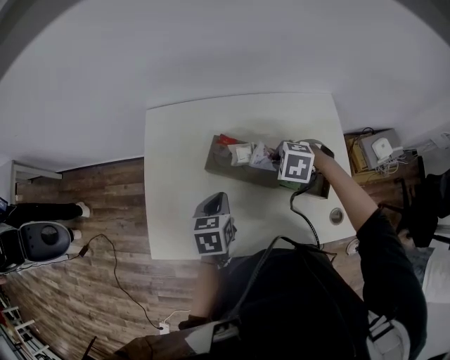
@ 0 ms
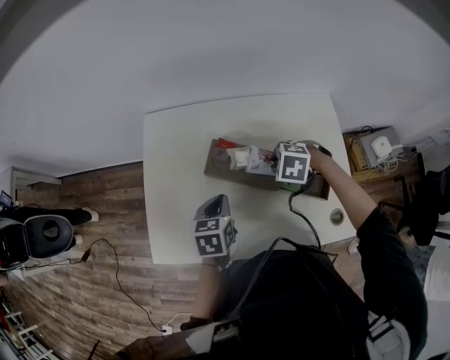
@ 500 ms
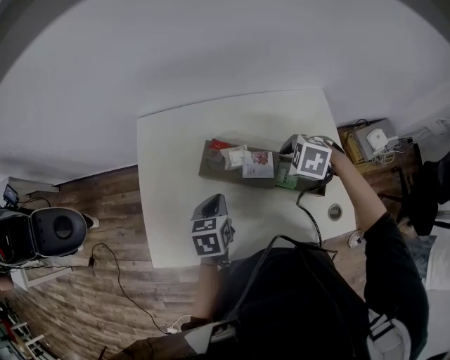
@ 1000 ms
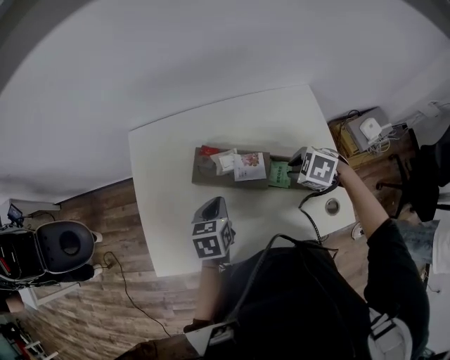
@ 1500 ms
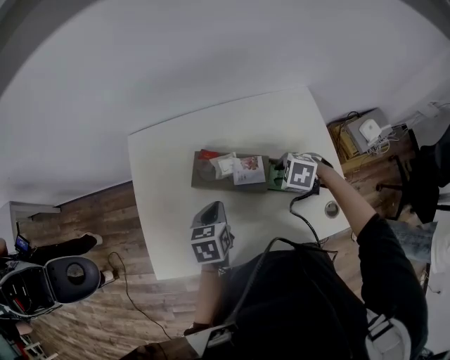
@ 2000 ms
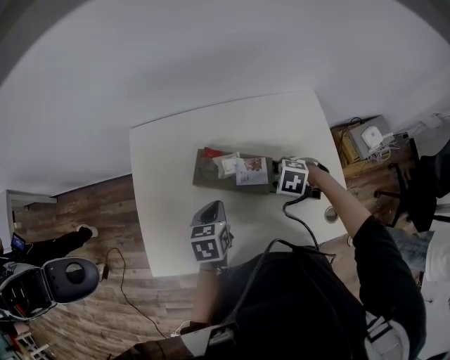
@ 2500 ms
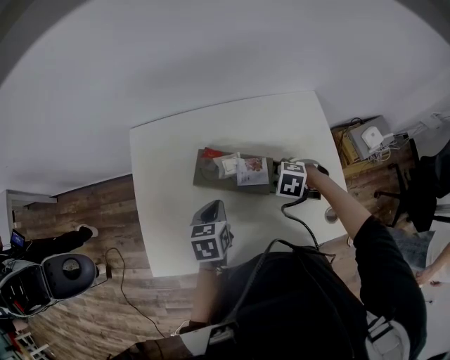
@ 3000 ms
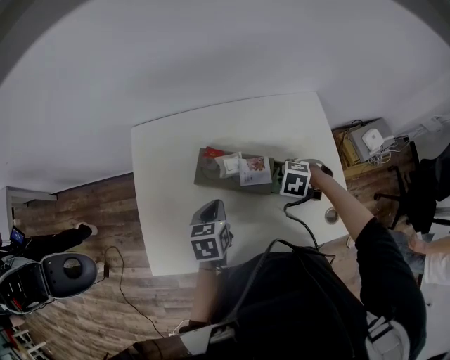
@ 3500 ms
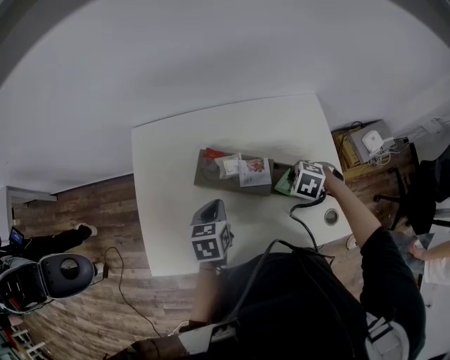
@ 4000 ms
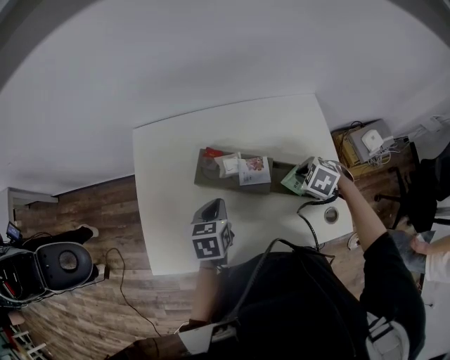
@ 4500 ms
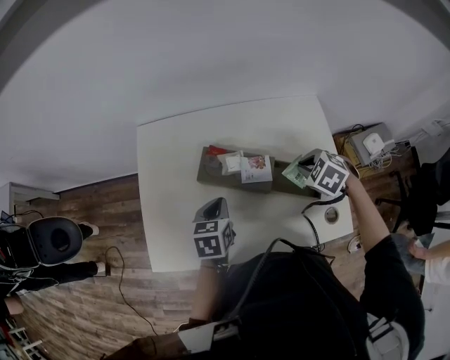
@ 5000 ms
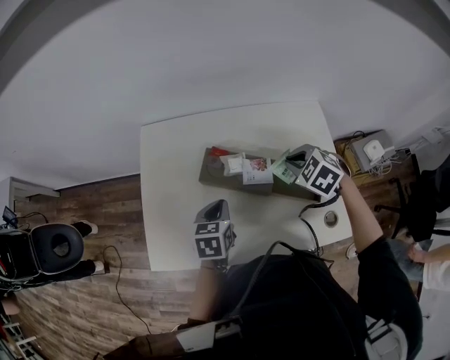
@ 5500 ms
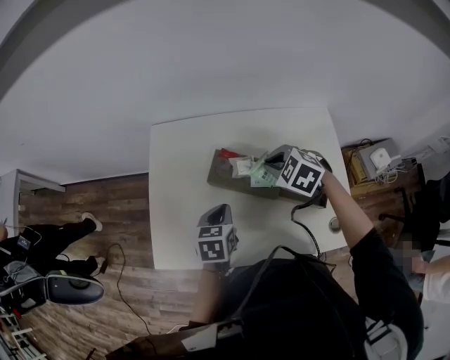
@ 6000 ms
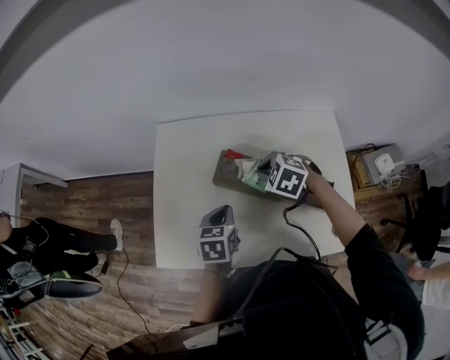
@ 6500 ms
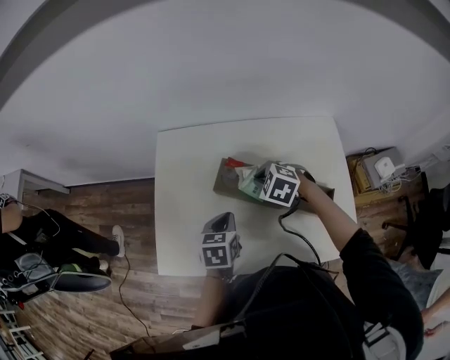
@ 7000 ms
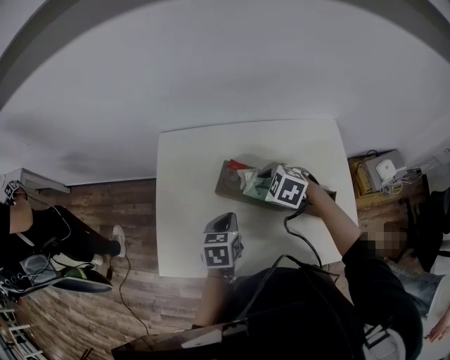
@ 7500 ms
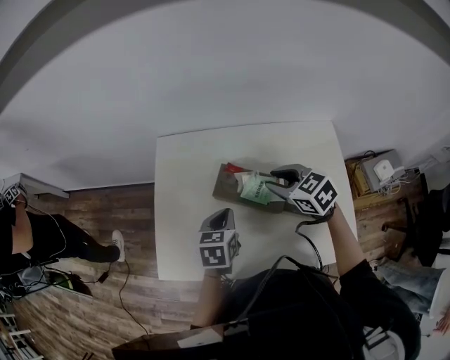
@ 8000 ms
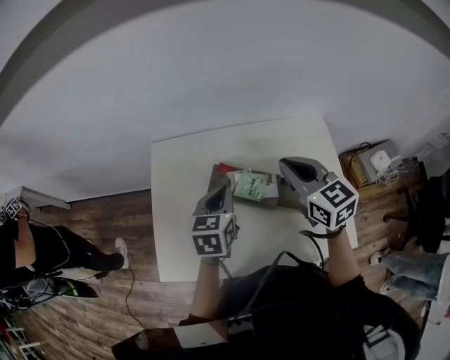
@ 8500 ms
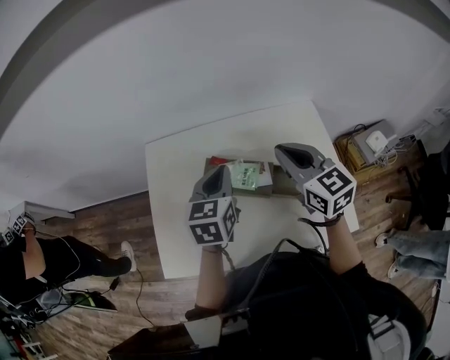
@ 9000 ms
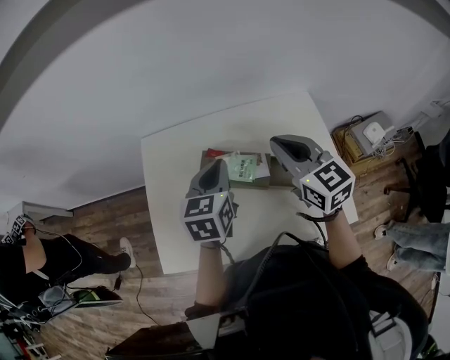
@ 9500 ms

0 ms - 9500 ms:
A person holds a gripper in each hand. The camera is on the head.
0 ms - 2000 ms: The right gripper shifts by approximately 5 cm, and opens.
2000 ms - 4000 ms: The right gripper closes up.
4000 ms - 5500 ms: The right gripper travels upward by roughly 10 cm, and swivels roughly 20 degrees.
5500 ms - 7500 ms: The right gripper goes approximately 15 cm to the left, and opens up.
7500 ms - 9500 ms: Both grippers move upward and to the right, about 20 cm. The left gripper turns by approximately 20 degrees. The right gripper points its fingers some 50 degrees further upward, and closes up.

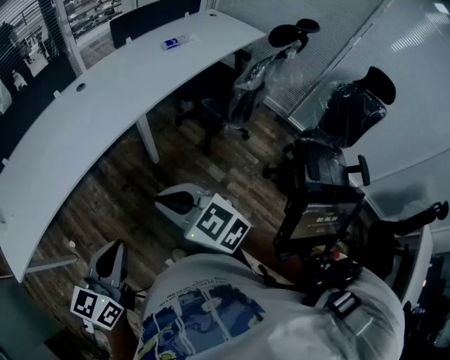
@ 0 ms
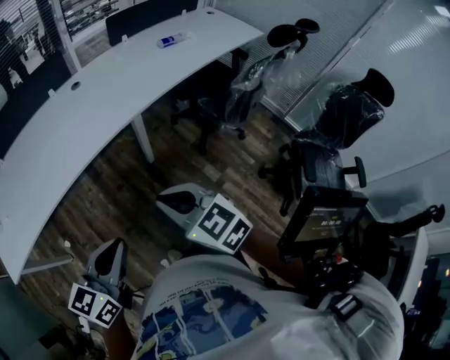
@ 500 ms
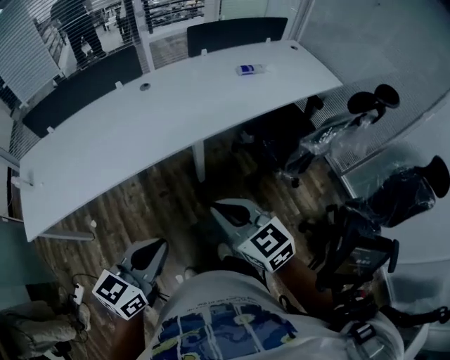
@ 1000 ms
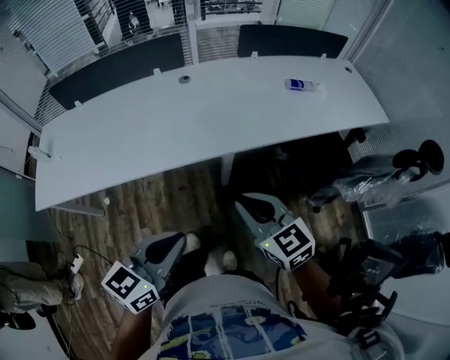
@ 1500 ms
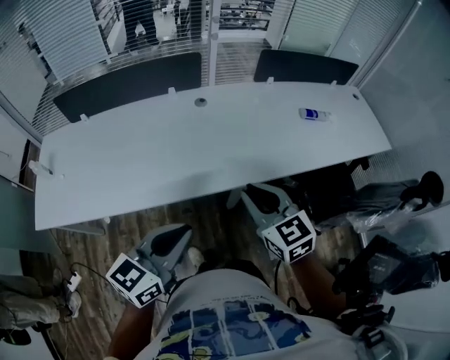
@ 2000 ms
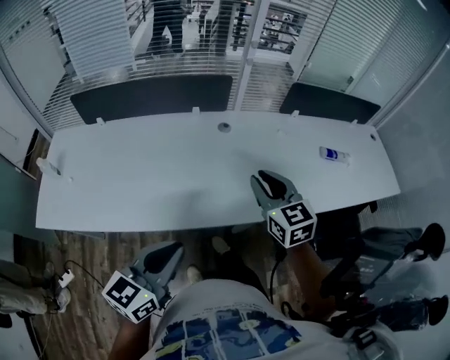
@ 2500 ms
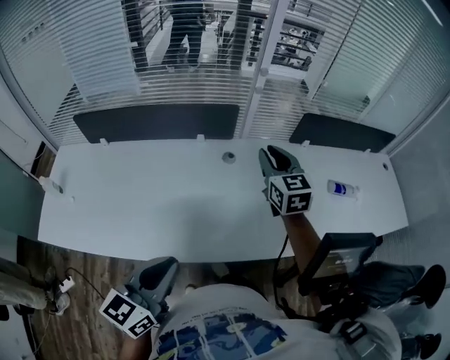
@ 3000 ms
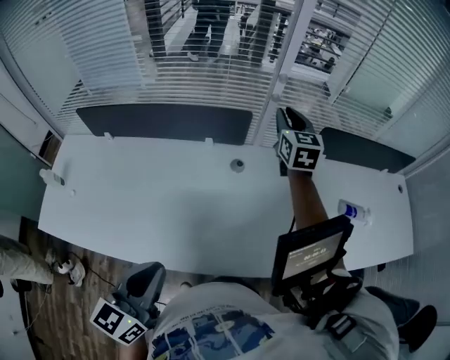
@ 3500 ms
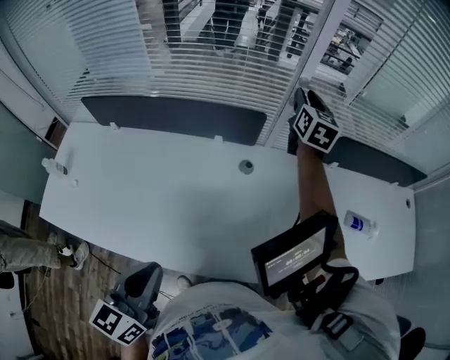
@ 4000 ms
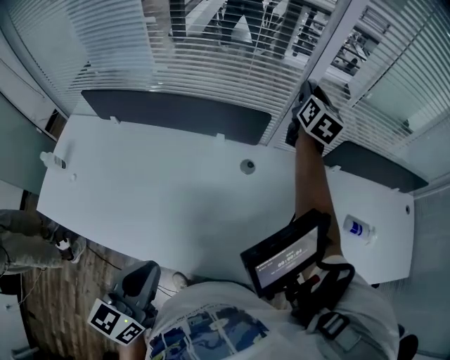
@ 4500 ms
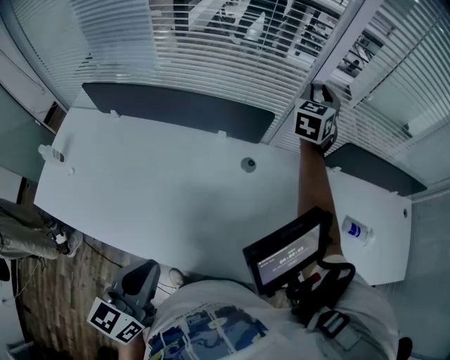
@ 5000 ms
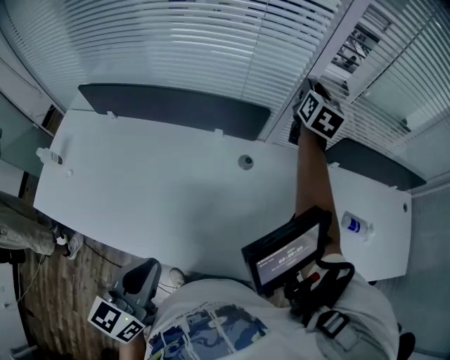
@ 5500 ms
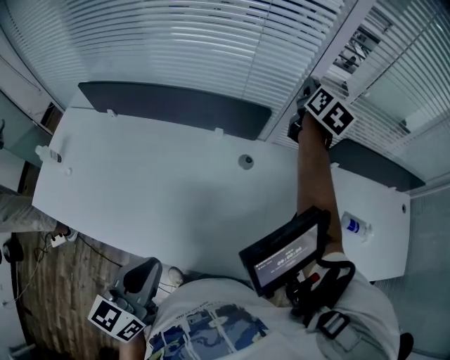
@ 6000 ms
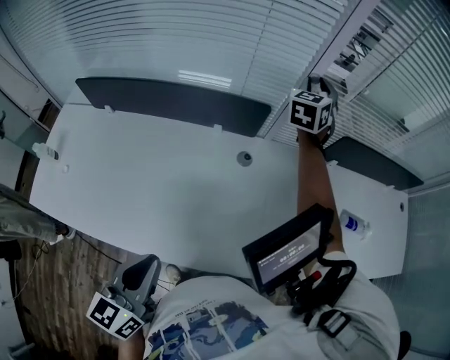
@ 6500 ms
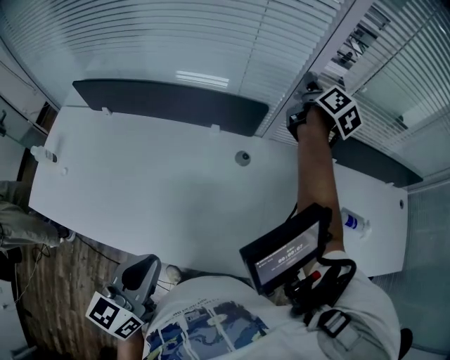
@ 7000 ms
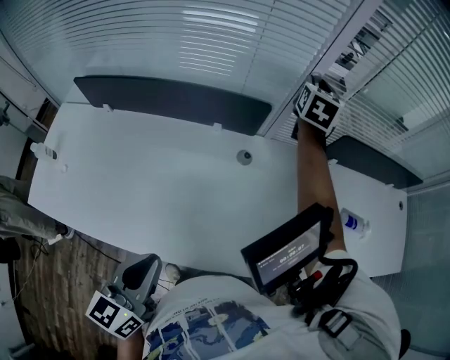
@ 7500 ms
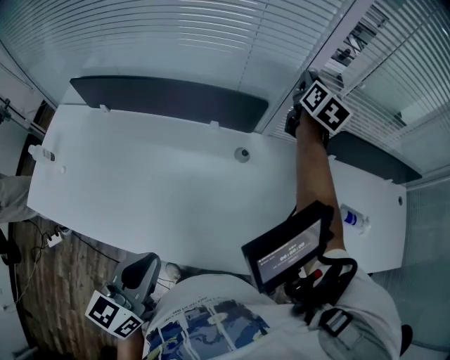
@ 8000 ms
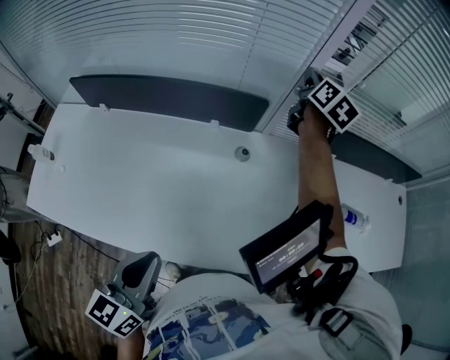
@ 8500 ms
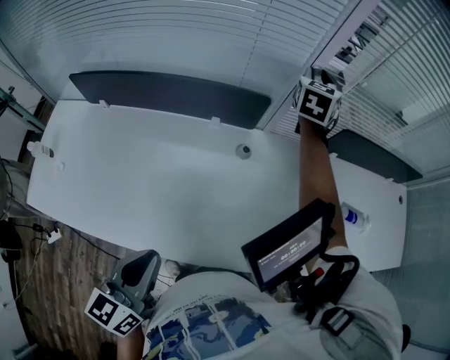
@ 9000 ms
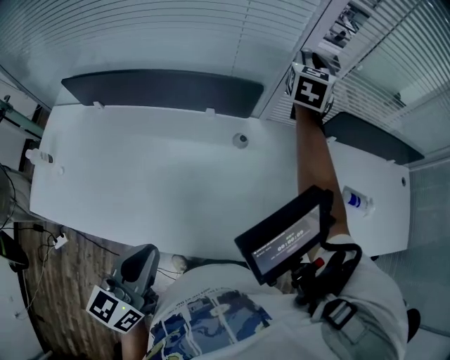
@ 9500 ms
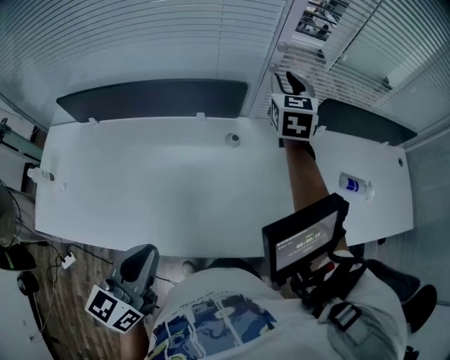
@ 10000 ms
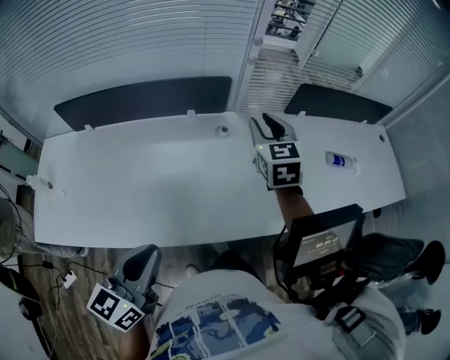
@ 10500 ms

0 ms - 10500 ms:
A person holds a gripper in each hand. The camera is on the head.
0 ms - 2000 ms: The grippers both shift forward by roughly 30 cm.
2000 ms - 4000 ms: The left gripper travels forward and to the left by some 25 cm, and swivels about 40 degrees. The right gripper heads forward, covering about 70 cm, and turns by some 20 degrees.
4000 ms - 6500 ms: The right gripper rotates some 30 degrees.
6500 ms - 8500 ms: The right gripper rotates around the line of its fingers by approximately 50 degrees, clockwise from behind.
8500 ms - 10500 ms: The right gripper goes approximately 30 cm backward, and turns by about 40 degrees, while the left gripper travels backward by roughly 10 cm.

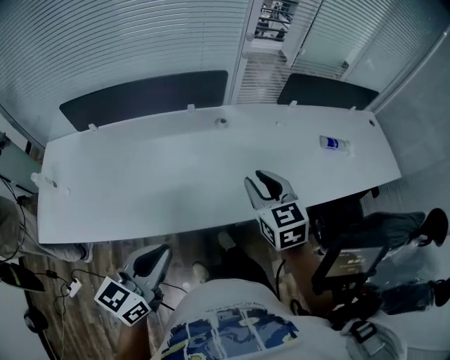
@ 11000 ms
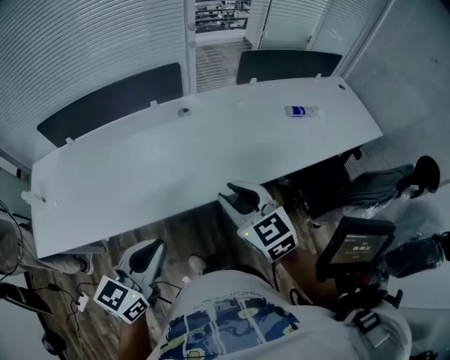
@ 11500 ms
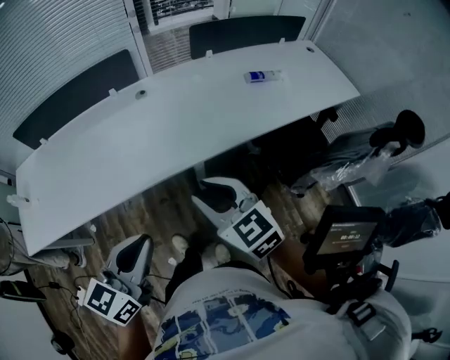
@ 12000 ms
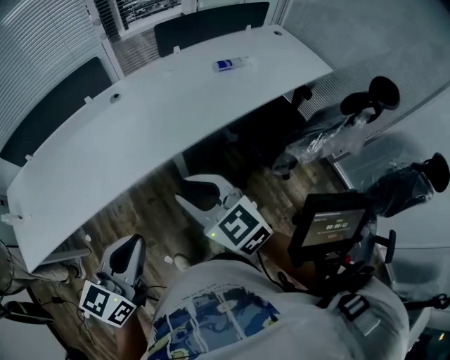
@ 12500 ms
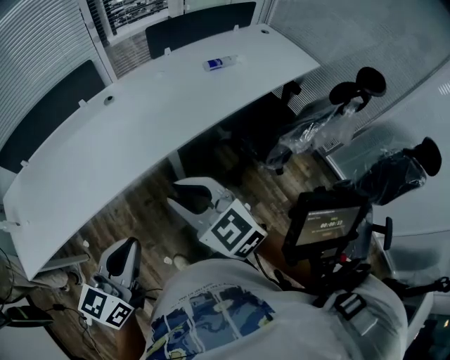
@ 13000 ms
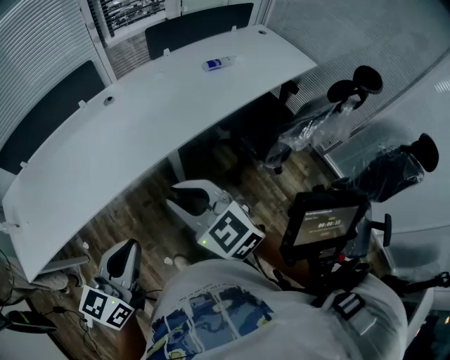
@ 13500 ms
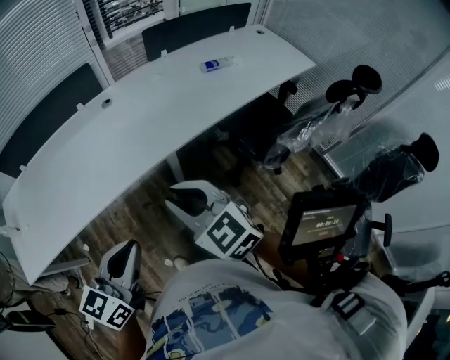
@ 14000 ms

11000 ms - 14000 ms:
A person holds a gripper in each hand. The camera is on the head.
11000 ms - 12500 ms: The right gripper moves backward and to the right, some 30 cm, while the left gripper shifts about 25 cm to the right and backward.
12500 ms - 14000 ms: There are only small adjustments of the grippers.

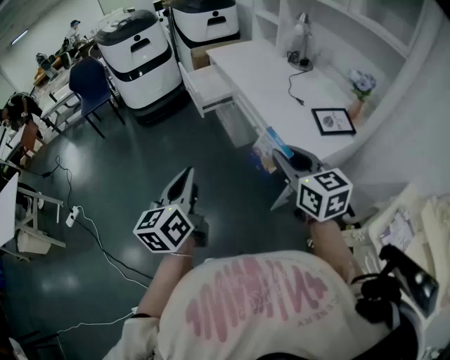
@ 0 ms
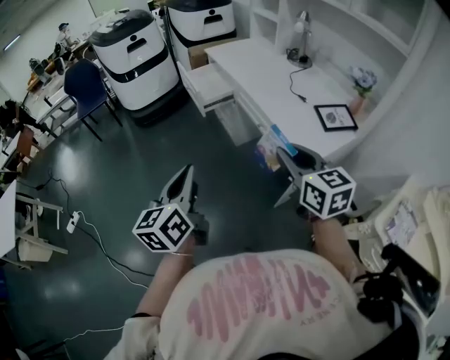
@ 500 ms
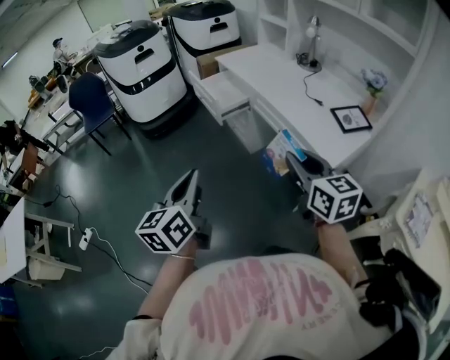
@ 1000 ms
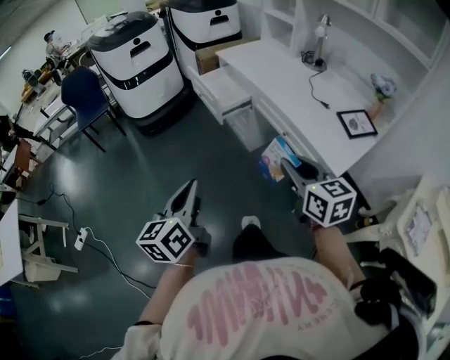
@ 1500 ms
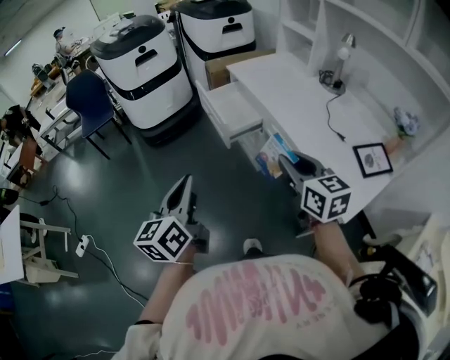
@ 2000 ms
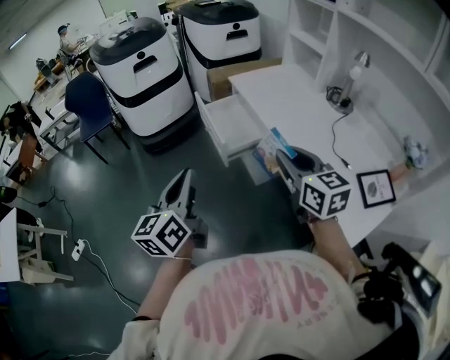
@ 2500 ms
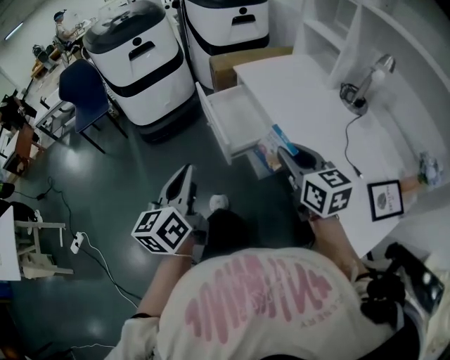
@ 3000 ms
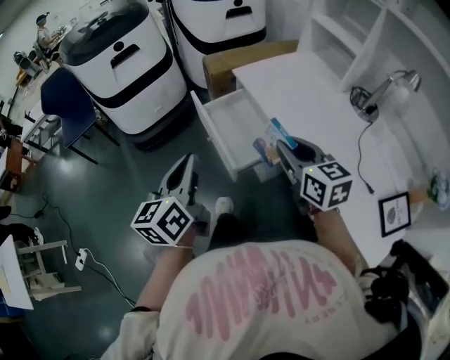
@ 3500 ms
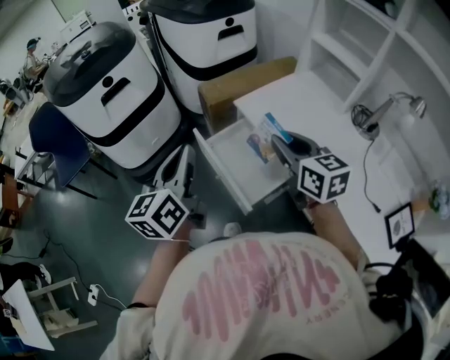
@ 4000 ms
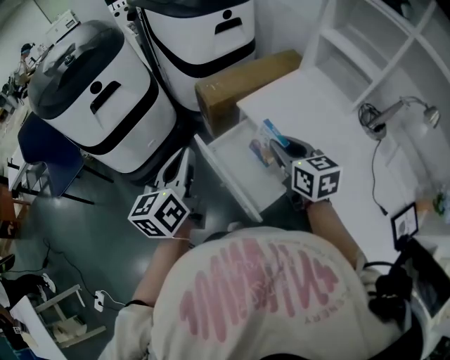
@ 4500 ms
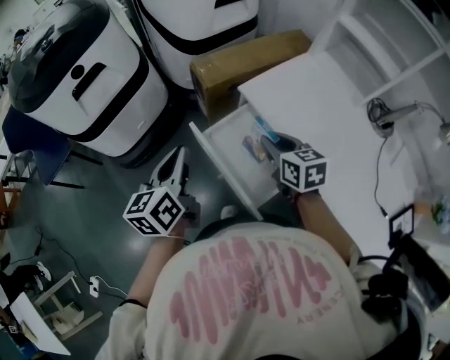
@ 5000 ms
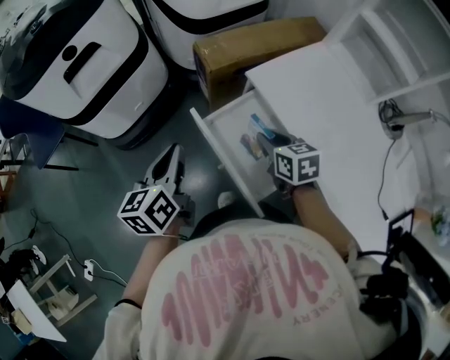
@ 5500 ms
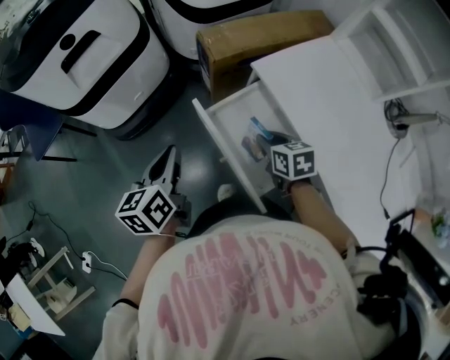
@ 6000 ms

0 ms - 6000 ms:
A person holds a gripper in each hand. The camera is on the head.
0 ms - 2000 ms: The grippers both shift forward and to the left by some 25 cm.
2000 ms - 4000 ms: Both grippers are carried forward, about 50 cm.
4000 ms - 6000 ms: Both grippers travel together downward, roughly 25 cm. The right gripper tilts its fingers some 30 degrees downward. Meanwhile the left gripper changes its angle by approximately 20 degrees.
